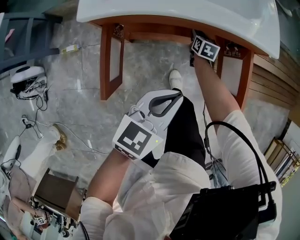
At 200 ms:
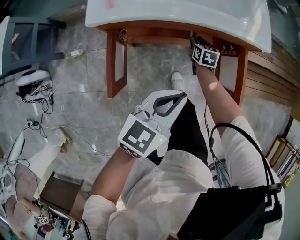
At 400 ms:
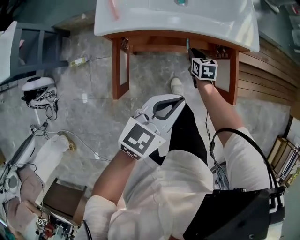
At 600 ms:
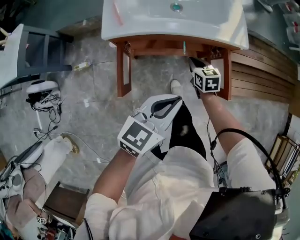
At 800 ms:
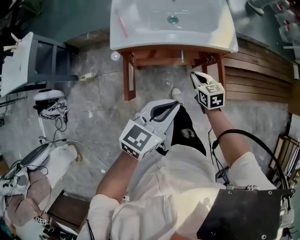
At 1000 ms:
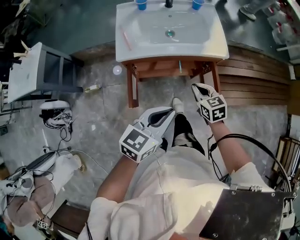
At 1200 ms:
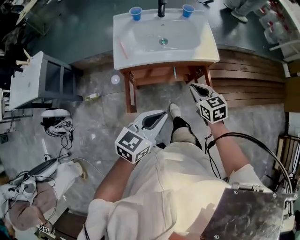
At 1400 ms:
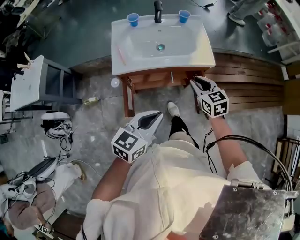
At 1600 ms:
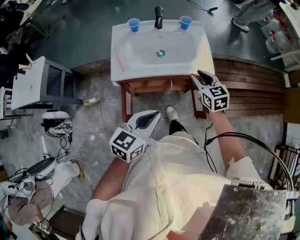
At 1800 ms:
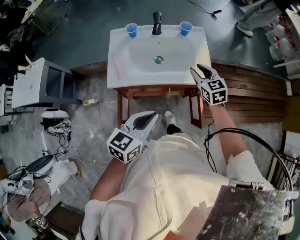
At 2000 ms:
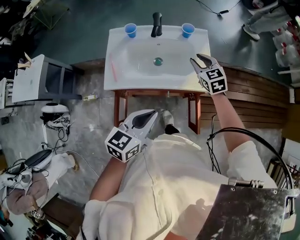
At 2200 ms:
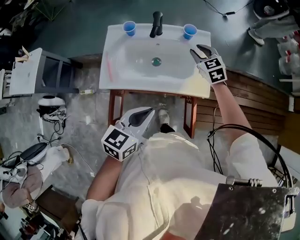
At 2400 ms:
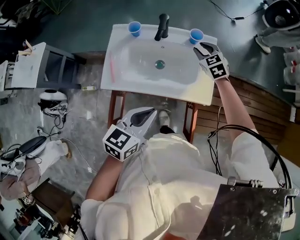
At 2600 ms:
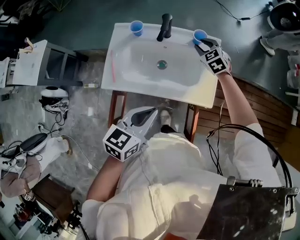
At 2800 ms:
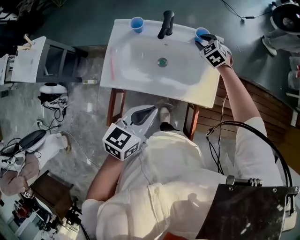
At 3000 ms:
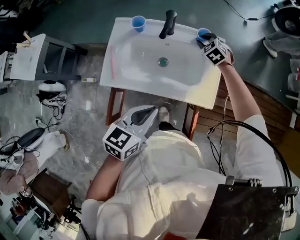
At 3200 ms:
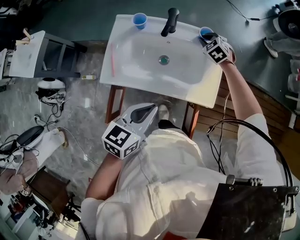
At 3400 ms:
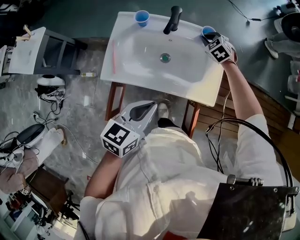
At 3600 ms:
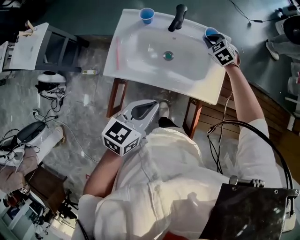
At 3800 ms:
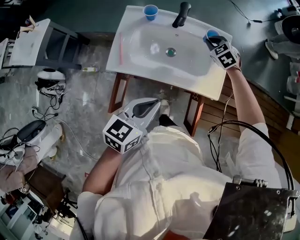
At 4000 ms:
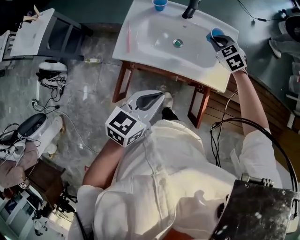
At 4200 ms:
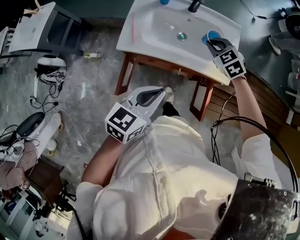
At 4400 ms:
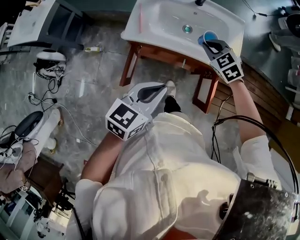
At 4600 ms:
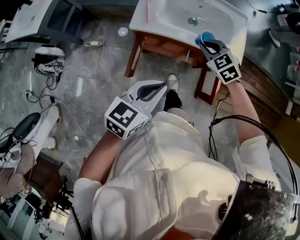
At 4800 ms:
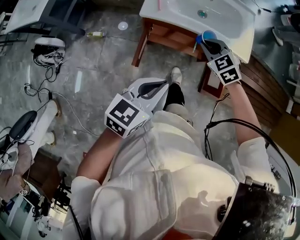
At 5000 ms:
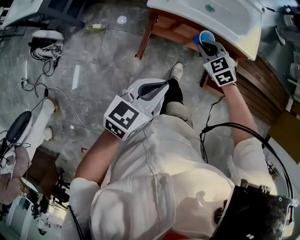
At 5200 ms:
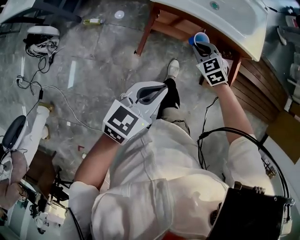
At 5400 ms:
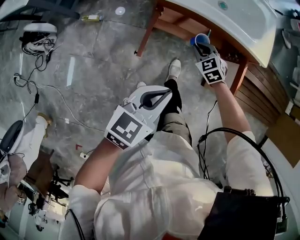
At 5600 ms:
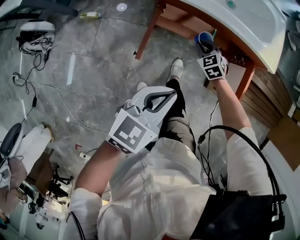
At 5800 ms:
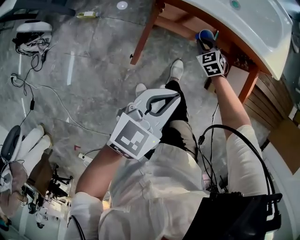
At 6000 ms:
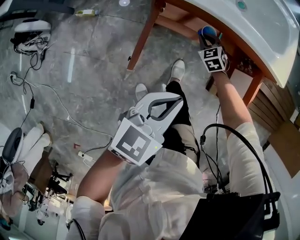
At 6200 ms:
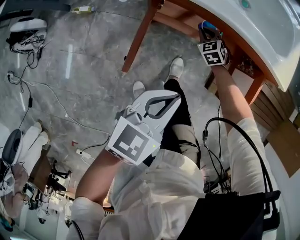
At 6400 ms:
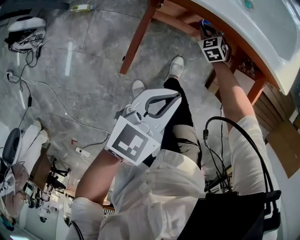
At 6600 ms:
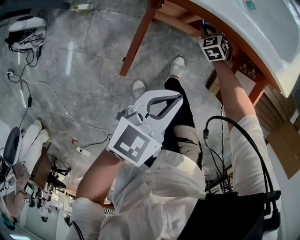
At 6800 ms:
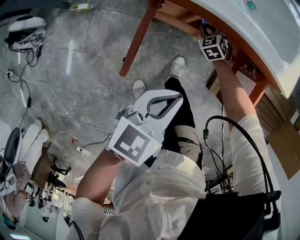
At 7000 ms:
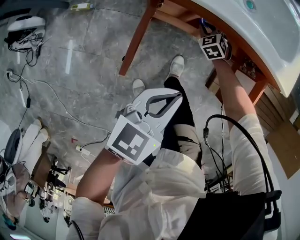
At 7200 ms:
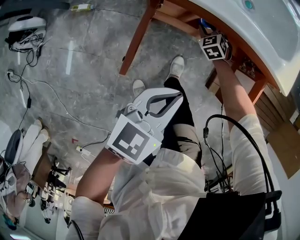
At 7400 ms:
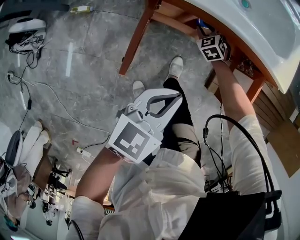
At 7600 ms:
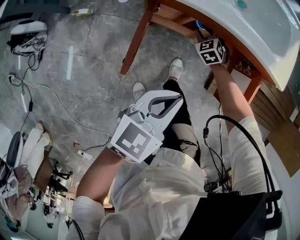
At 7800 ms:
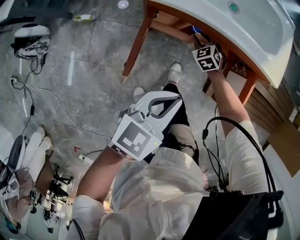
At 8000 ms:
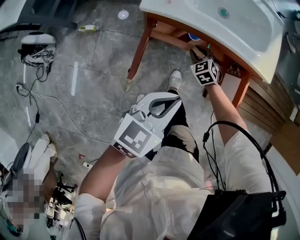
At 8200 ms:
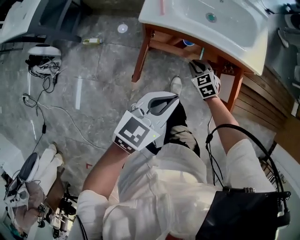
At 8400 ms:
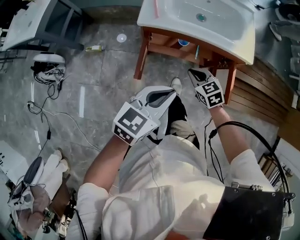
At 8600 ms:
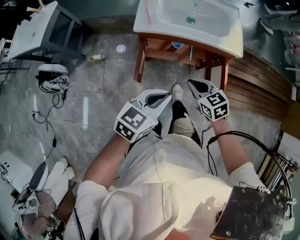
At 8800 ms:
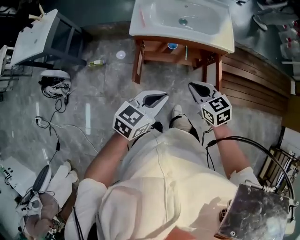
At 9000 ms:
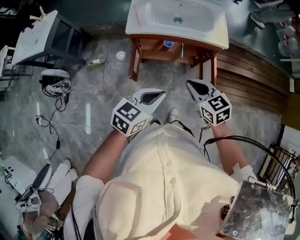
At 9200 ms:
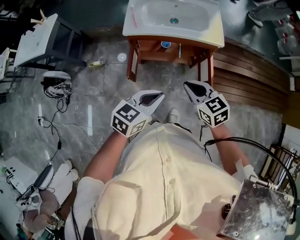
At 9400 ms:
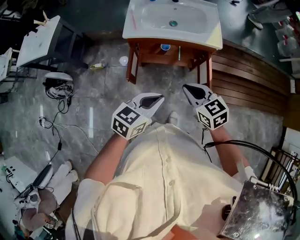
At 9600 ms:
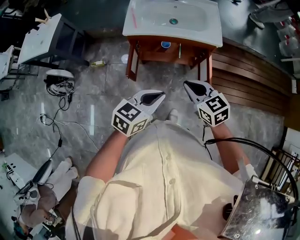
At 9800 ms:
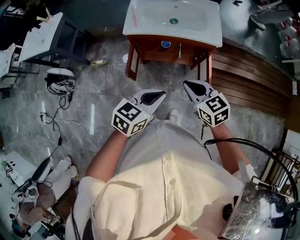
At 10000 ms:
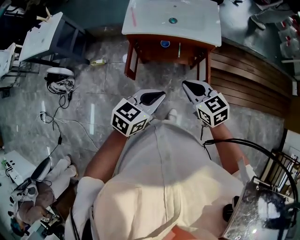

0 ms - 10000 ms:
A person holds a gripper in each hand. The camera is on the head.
0 ms - 1400 ms: The right gripper shifts some 50 cm upward, and rotates about 30 degrees; the left gripper moves upward, roughly 25 cm.
1400 ms - 2800 ms: The left gripper is displaced forward by roughly 25 cm; the right gripper goes approximately 40 cm forward, and rotates around the line of its fingers by about 40 degrees, counterclockwise from behind.
2800 ms - 4200 ms: The right gripper shifts about 20 cm backward, and closes up. The left gripper goes about 10 cm backward and to the left.
4200 ms - 5800 ms: The left gripper is displaced downward, backward and to the left by some 25 cm; the right gripper travels downward and backward by approximately 40 cm.
5800 ms - 7200 ms: The left gripper heads forward, covering some 5 cm. Meanwhile the right gripper is displaced forward and downward by roughly 10 cm.
7200 ms - 8600 ms: The right gripper moves upward and backward, some 40 cm, and rotates some 40 degrees, while the left gripper moves upward and backward, about 20 cm.
8600 ms - 10000 ms: The left gripper moves to the right, backward and upward, some 15 cm; the right gripper is displaced upward, to the right and backward by some 15 cm.

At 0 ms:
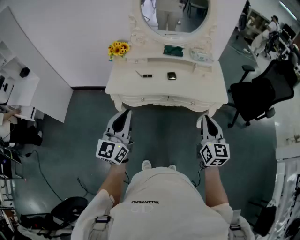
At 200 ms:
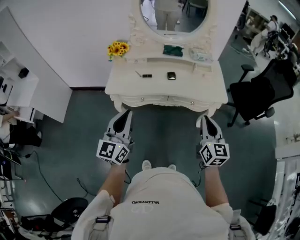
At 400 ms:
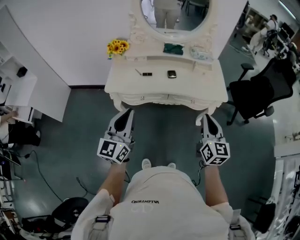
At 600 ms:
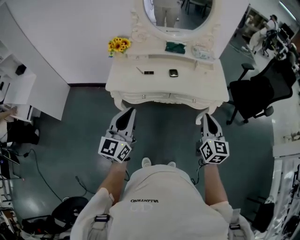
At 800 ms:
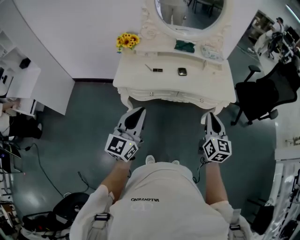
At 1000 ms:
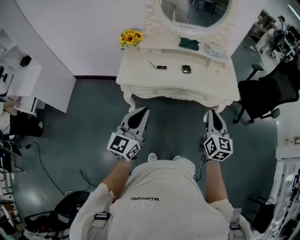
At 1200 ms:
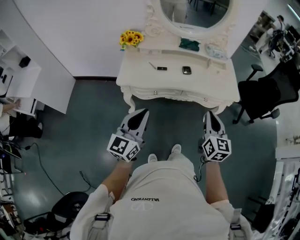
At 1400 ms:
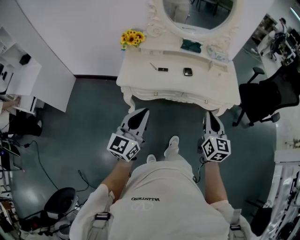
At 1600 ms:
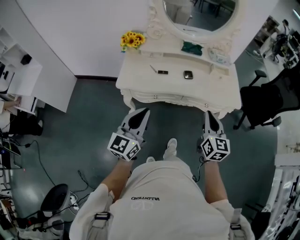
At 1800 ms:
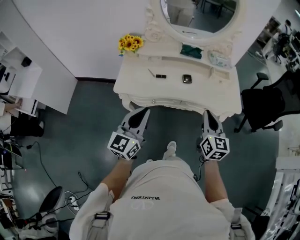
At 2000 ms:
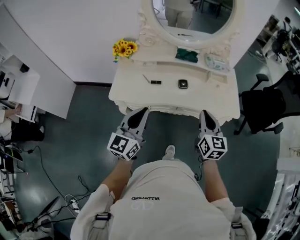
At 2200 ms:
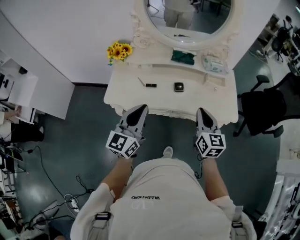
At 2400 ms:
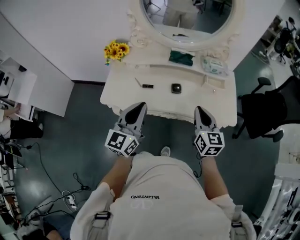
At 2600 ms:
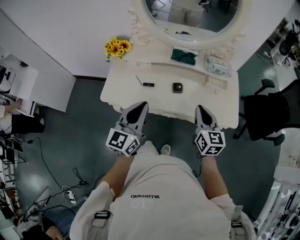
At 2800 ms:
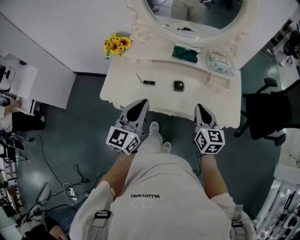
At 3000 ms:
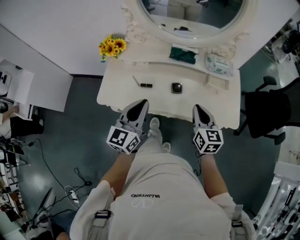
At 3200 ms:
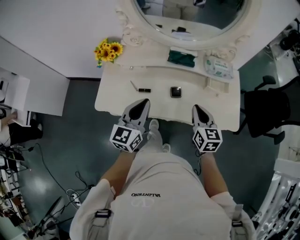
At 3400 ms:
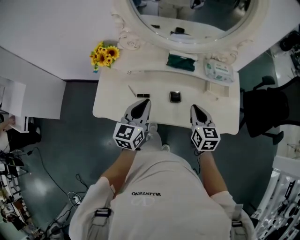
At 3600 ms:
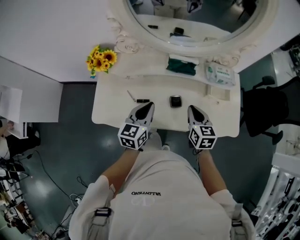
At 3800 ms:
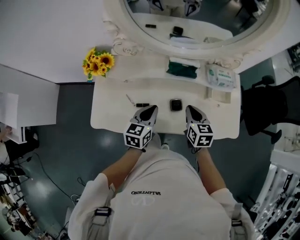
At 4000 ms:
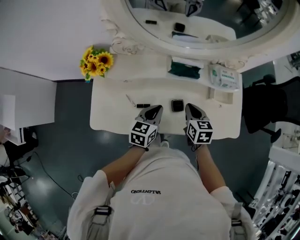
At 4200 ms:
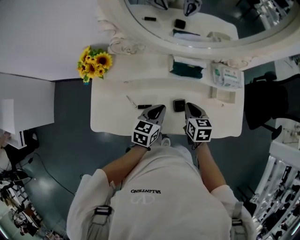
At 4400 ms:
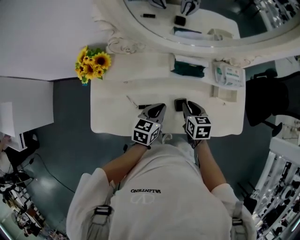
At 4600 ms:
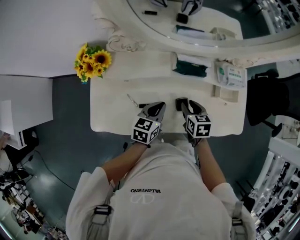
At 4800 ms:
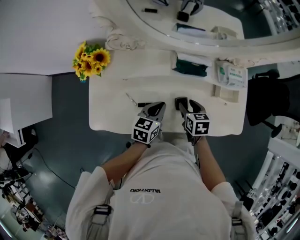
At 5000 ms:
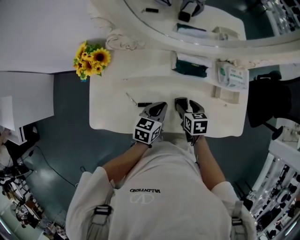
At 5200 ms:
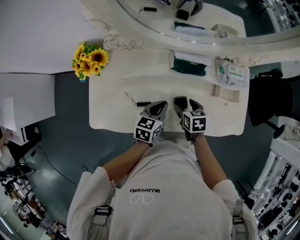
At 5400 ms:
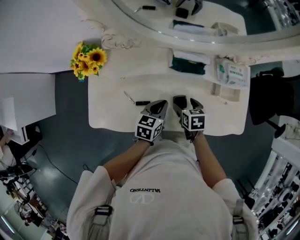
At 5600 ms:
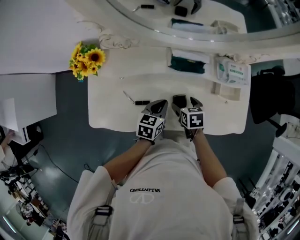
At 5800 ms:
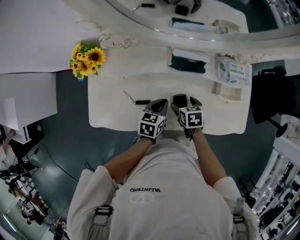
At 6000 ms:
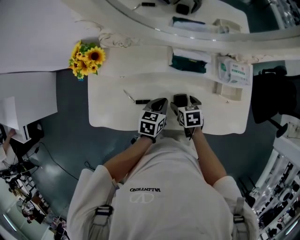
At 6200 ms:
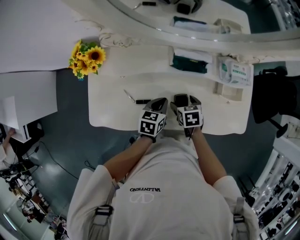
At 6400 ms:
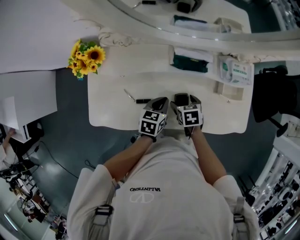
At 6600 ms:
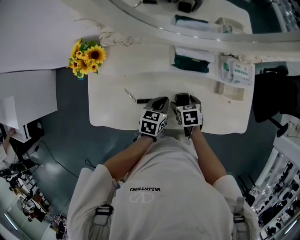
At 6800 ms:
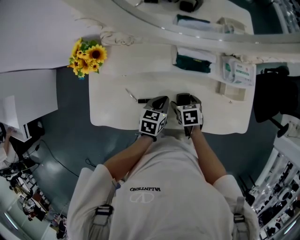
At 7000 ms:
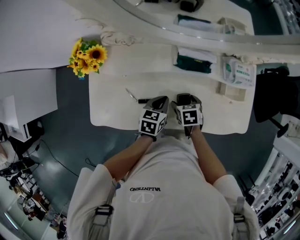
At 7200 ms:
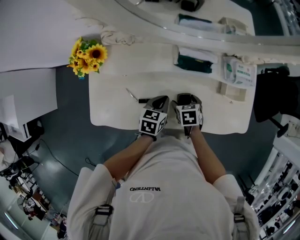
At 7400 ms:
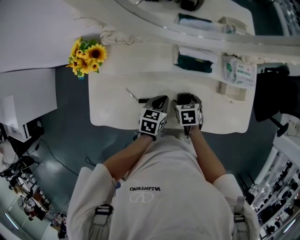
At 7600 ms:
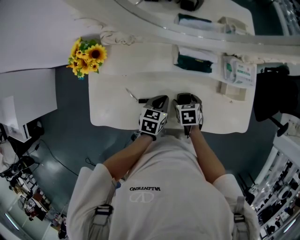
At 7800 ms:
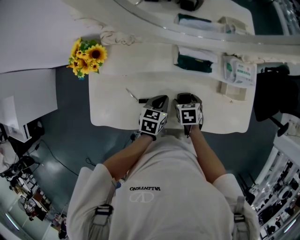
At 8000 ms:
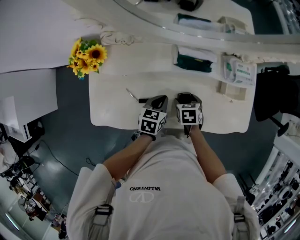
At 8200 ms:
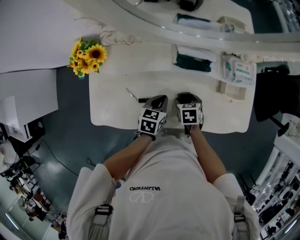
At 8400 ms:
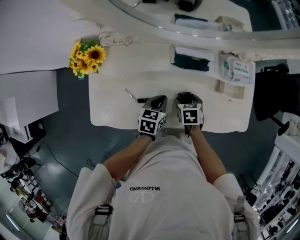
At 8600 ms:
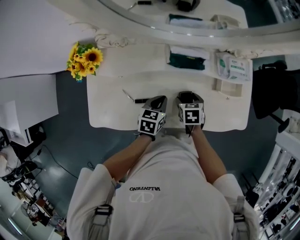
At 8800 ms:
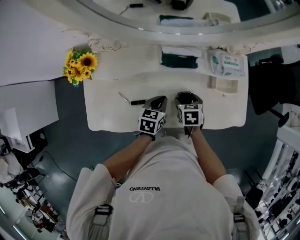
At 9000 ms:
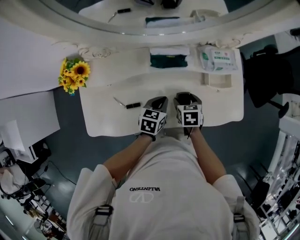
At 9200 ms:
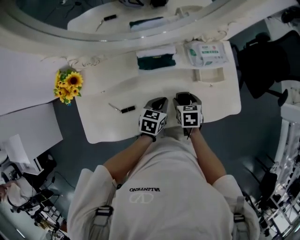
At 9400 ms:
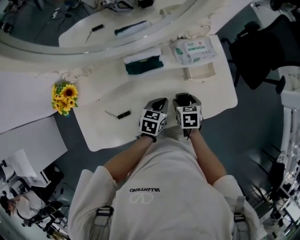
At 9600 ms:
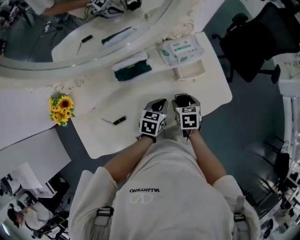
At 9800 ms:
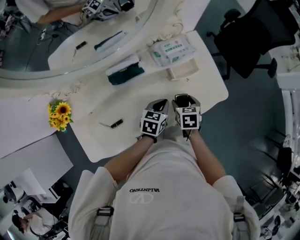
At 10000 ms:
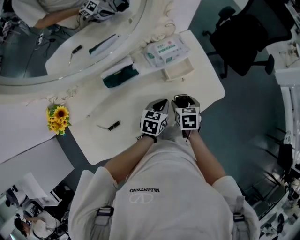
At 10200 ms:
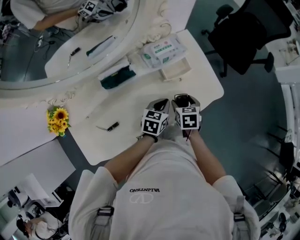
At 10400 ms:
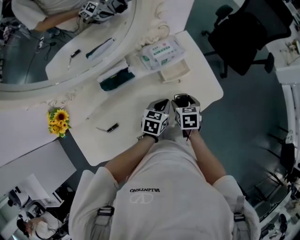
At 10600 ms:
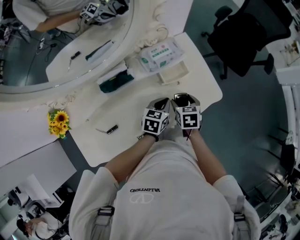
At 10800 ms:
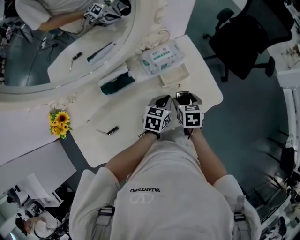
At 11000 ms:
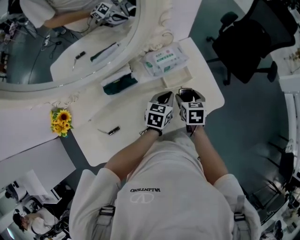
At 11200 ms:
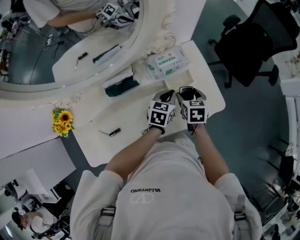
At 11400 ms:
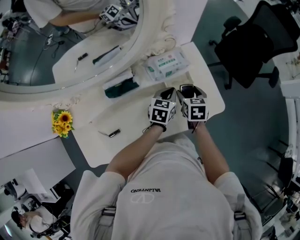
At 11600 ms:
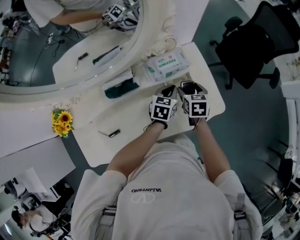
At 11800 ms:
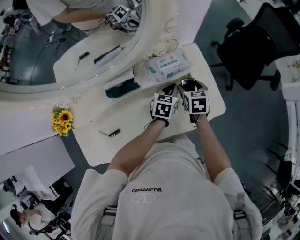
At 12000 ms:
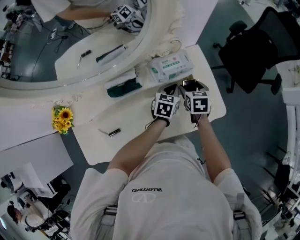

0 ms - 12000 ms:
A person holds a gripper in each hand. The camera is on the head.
0 ms - 1600 ms: The right gripper shifts some 10 cm to the left and forward; the left gripper goes some 5 cm downward.
1600 ms - 3000 ms: The left gripper is displaced forward and to the right by about 25 cm, while the right gripper moves forward, approximately 20 cm.
3000 ms - 4400 ms: The right gripper goes approximately 25 cm forward, downward and to the left, and swivels some 30 degrees. Meanwhile the left gripper goes some 25 cm downward and forward, and swivels about 40 degrees.
4400 ms - 6000 ms: Both grippers move downward, approximately 5 cm. The right gripper opens.
6000 ms - 7600 ms: There are only small adjustments of the grippers.
7600 ms - 9000 ms: Both grippers travel together to the right, roughly 5 cm.
9000 ms - 10400 ms: The two grippers go about 15 cm to the right. The left gripper turns by roughly 20 degrees. The right gripper swivels some 20 degrees.
10400 ms - 12000 ms: The two grippers go about 15 cm forward.

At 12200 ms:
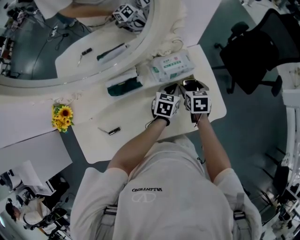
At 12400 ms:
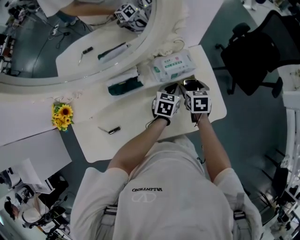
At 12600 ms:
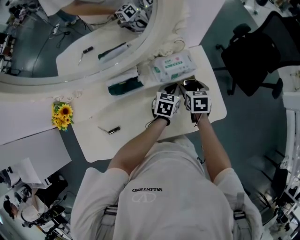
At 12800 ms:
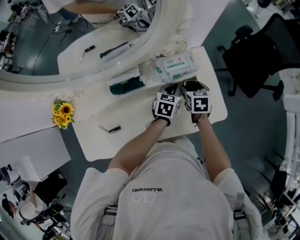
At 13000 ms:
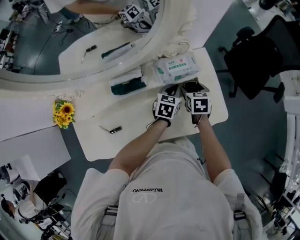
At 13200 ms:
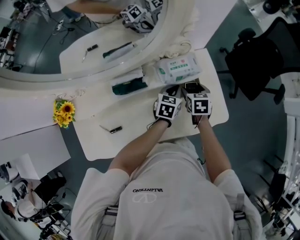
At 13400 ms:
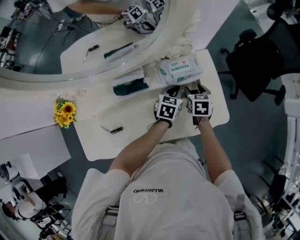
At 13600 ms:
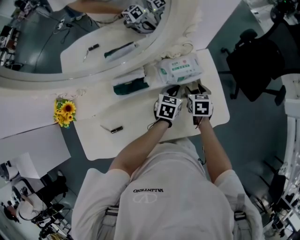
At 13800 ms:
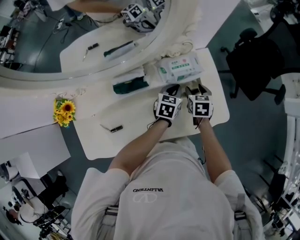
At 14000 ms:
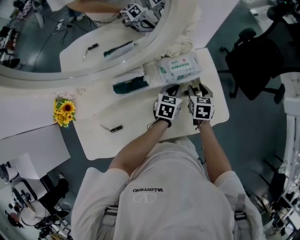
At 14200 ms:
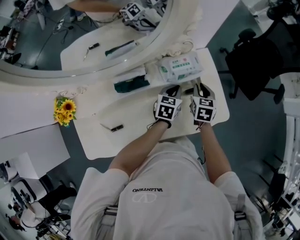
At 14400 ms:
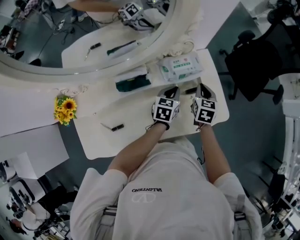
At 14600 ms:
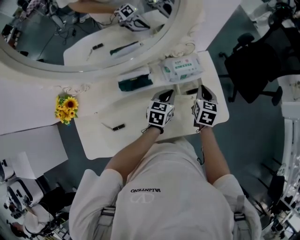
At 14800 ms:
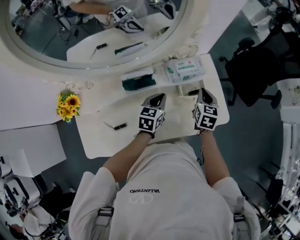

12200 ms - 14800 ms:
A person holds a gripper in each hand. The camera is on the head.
12200 ms - 13400 ms: There are only small adjustments of the grippers.
13400 ms - 14800 ms: The left gripper heads to the left, backward and upward, covering about 15 cm, while the right gripper goes roughly 10 cm upward, and closes its fingers.
